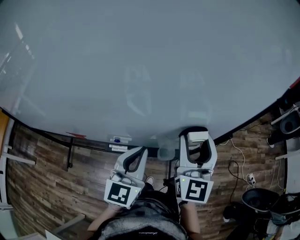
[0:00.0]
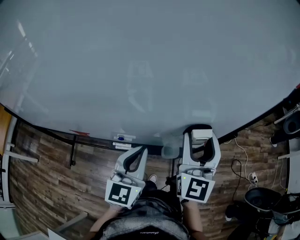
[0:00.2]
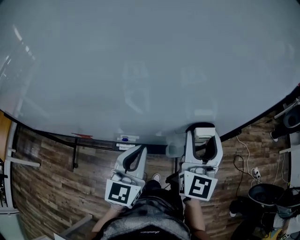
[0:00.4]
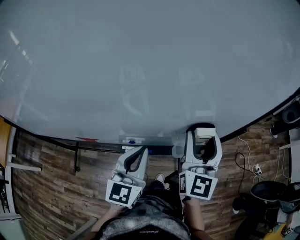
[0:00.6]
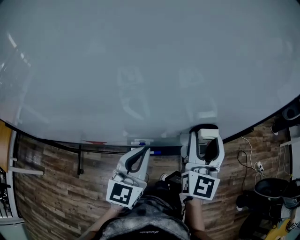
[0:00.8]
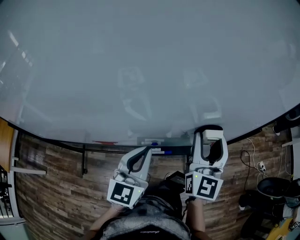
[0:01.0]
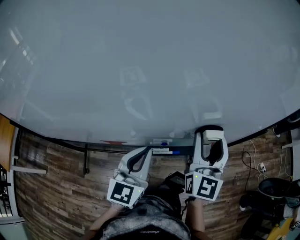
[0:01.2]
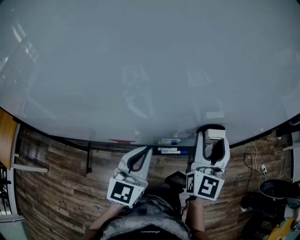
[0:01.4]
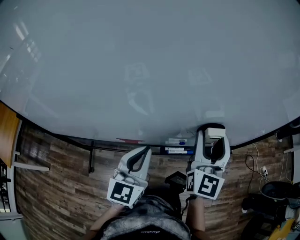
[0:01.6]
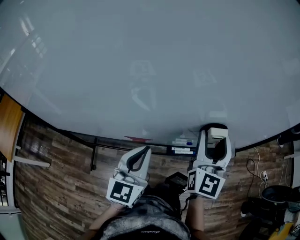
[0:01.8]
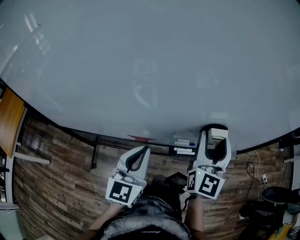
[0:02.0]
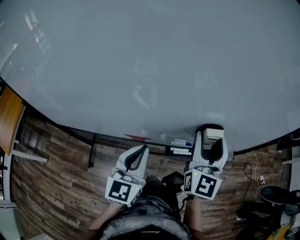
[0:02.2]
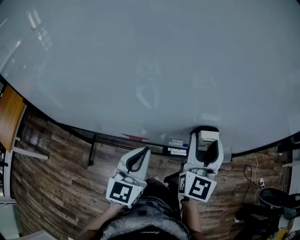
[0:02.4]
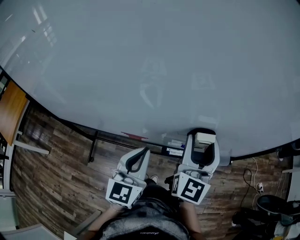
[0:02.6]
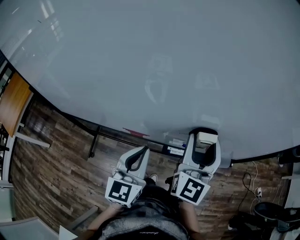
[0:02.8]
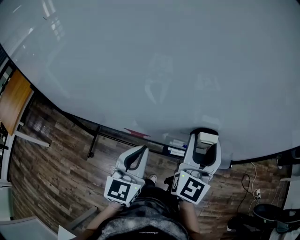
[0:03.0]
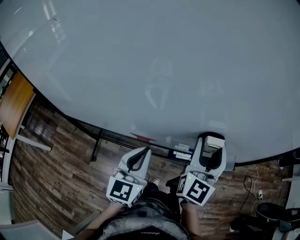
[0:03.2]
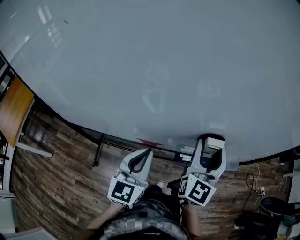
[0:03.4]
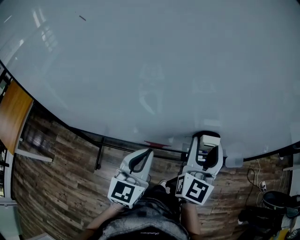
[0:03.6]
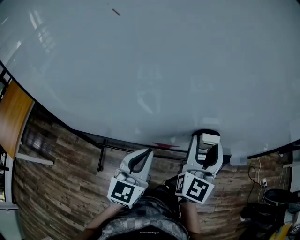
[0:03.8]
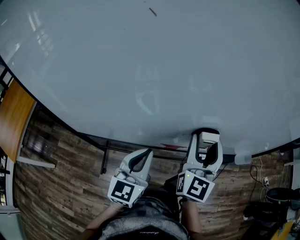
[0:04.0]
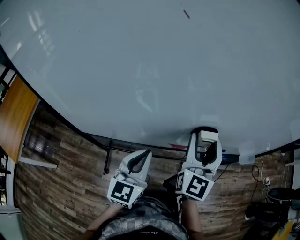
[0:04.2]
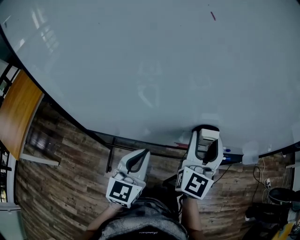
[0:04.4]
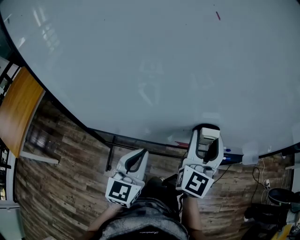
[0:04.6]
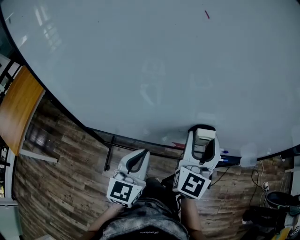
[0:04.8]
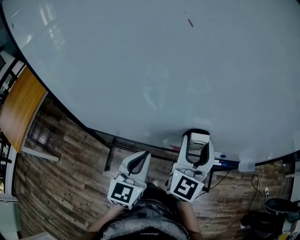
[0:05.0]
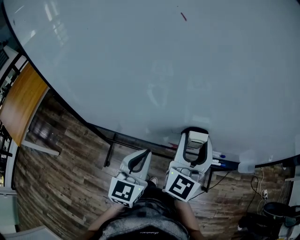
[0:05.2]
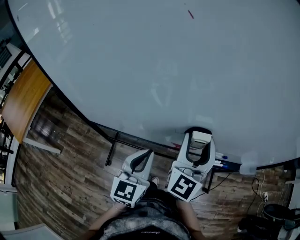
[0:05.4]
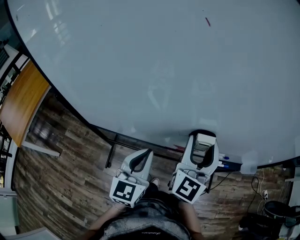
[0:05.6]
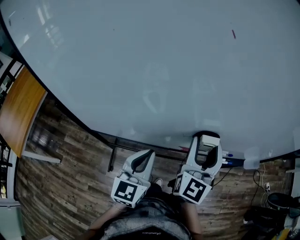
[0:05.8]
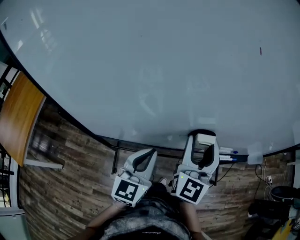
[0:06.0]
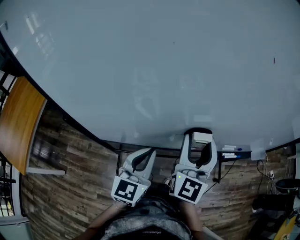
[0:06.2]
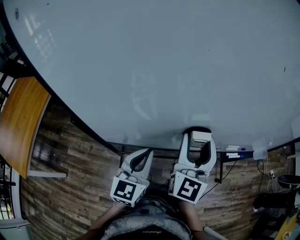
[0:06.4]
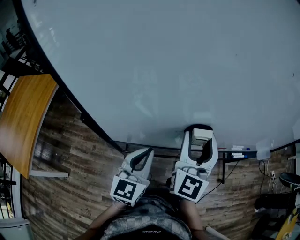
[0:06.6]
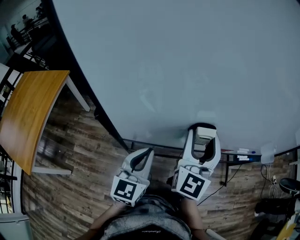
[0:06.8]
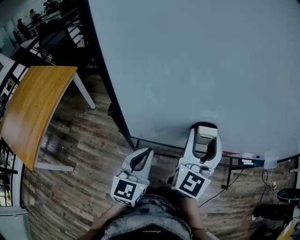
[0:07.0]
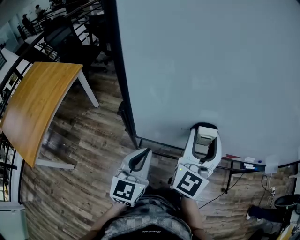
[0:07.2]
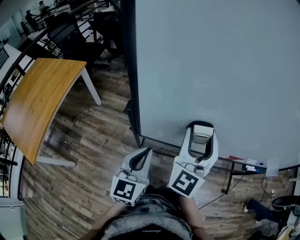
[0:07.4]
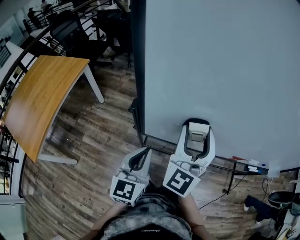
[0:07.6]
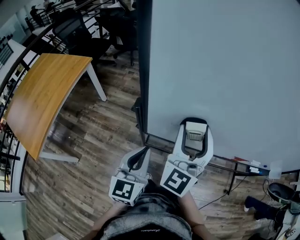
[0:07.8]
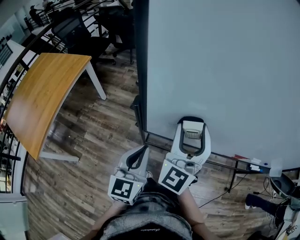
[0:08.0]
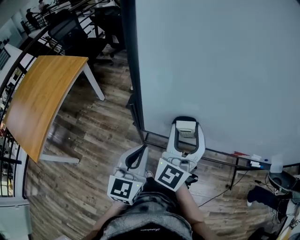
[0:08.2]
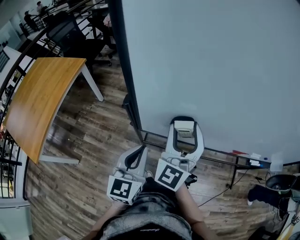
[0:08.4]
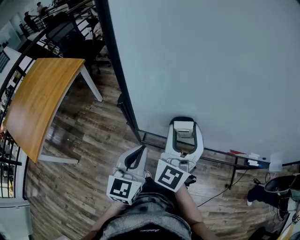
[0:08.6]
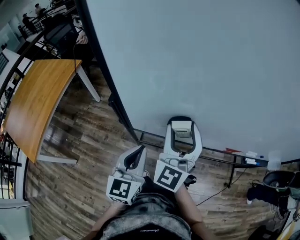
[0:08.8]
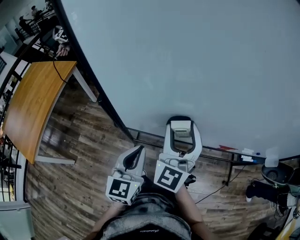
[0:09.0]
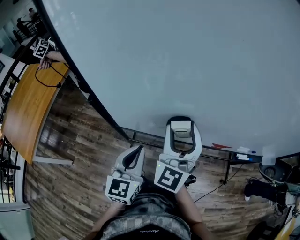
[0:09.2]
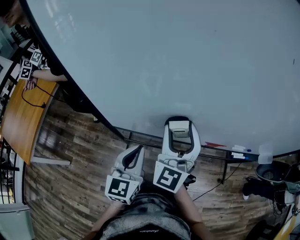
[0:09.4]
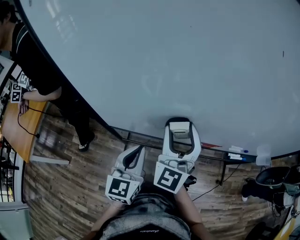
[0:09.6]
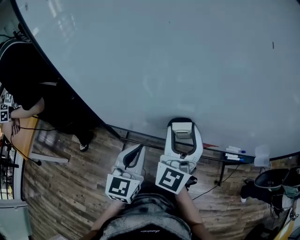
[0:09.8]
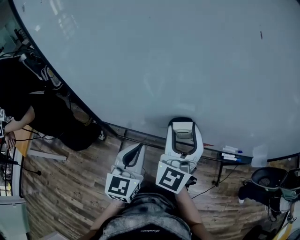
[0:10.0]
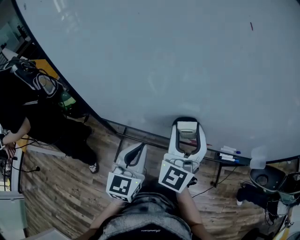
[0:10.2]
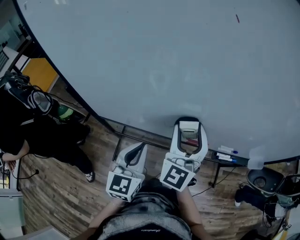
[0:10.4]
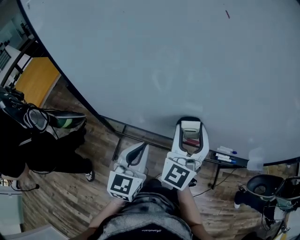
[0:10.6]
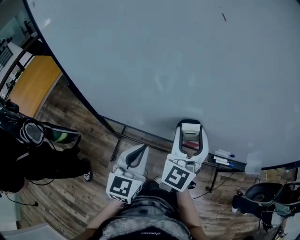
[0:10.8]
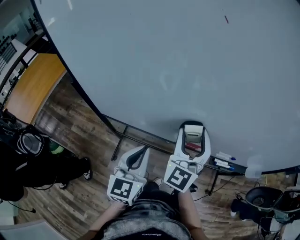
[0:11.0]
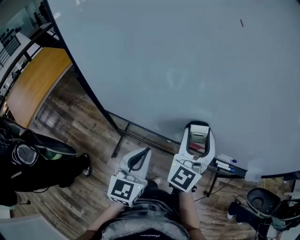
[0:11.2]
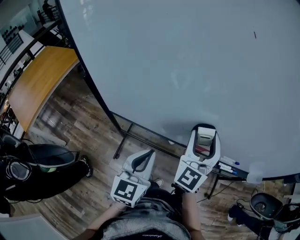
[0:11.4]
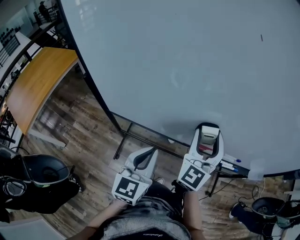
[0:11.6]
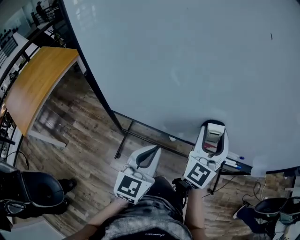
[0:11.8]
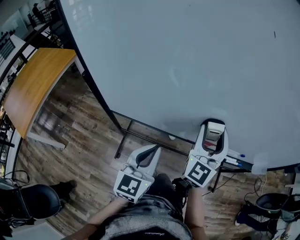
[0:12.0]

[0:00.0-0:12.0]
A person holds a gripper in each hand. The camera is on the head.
0:00.0 to 0:01.6: The grippers both shift to the left by roughly 25 cm.
0:01.6 to 0:03.0: There are only small adjustments of the grippers.
0:03.0 to 0:04.4: Both grippers travel together to the left, some 25 cm.
0:04.4 to 0:06.0: The left gripper is displaced to the left by approximately 5 cm. The right gripper heads to the left, covering roughly 10 cm.
0:06.0 to 0:07.6: Both grippers move to the left, approximately 30 cm.
0:07.6 to 0:09.0: Both grippers travel together to the right, roughly 10 cm.
0:09.0 to 0:10.4: Both grippers travel together to the right, approximately 25 cm.
0:10.4 to 0:12.0: The grippers make only small movements.

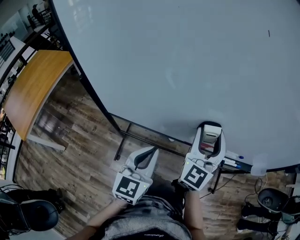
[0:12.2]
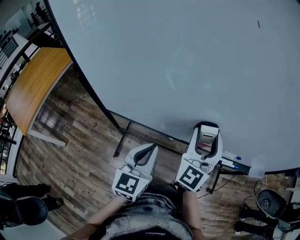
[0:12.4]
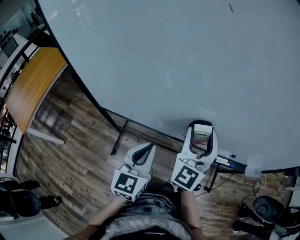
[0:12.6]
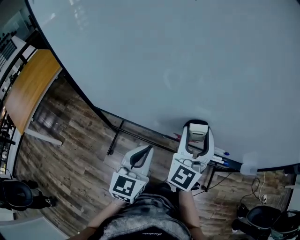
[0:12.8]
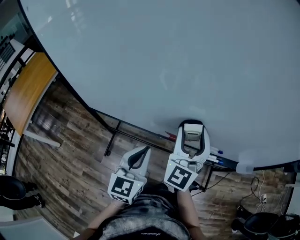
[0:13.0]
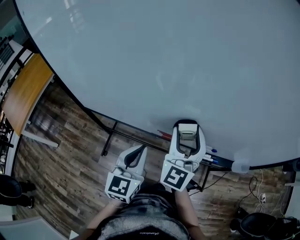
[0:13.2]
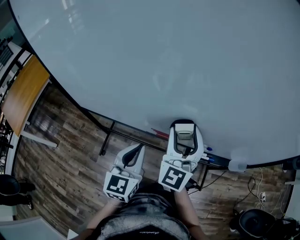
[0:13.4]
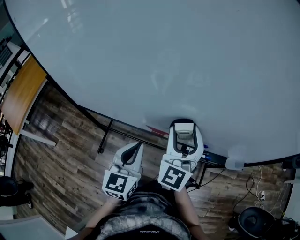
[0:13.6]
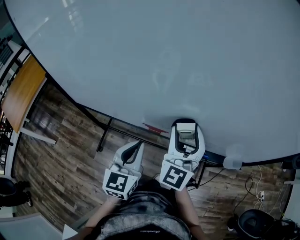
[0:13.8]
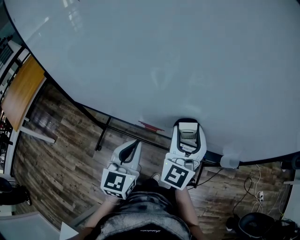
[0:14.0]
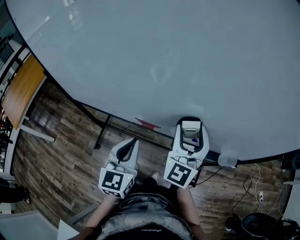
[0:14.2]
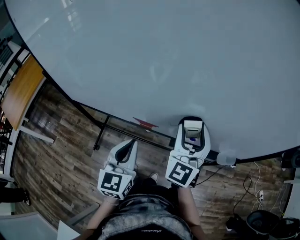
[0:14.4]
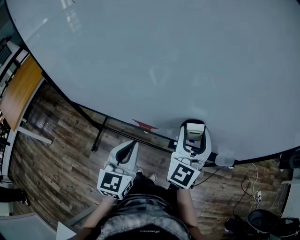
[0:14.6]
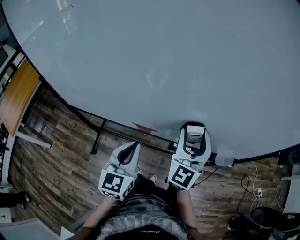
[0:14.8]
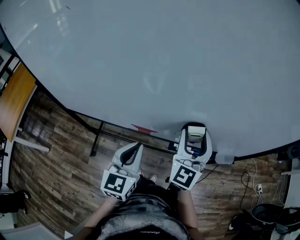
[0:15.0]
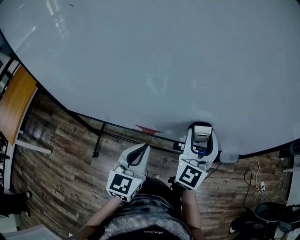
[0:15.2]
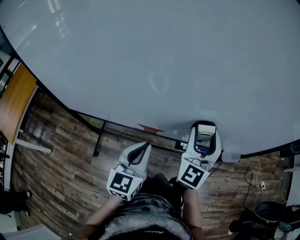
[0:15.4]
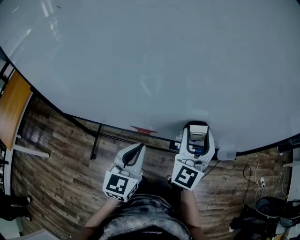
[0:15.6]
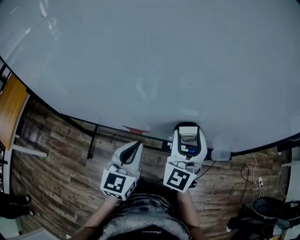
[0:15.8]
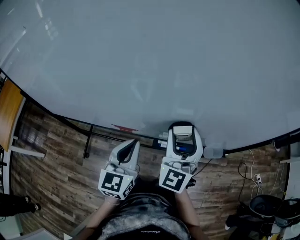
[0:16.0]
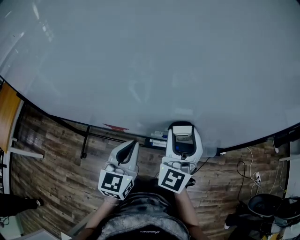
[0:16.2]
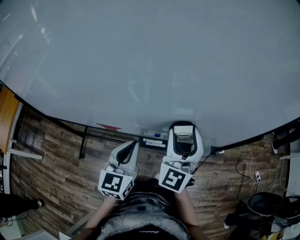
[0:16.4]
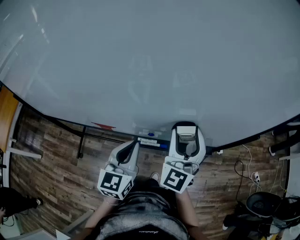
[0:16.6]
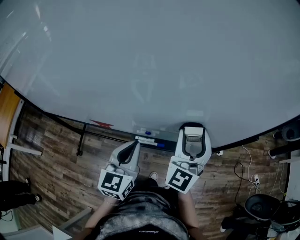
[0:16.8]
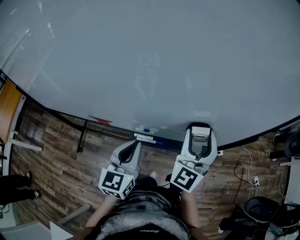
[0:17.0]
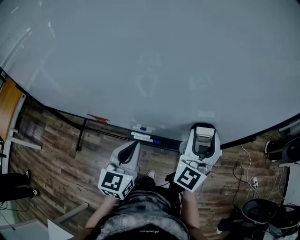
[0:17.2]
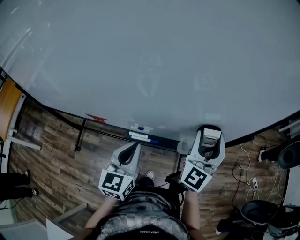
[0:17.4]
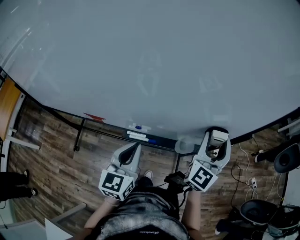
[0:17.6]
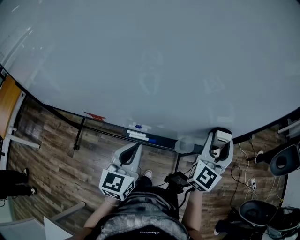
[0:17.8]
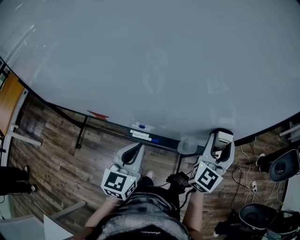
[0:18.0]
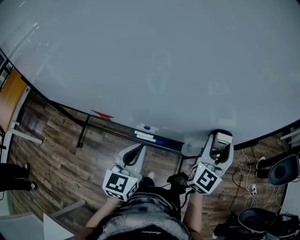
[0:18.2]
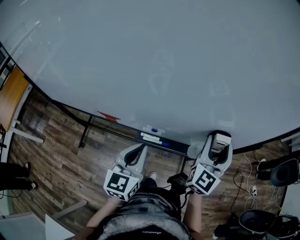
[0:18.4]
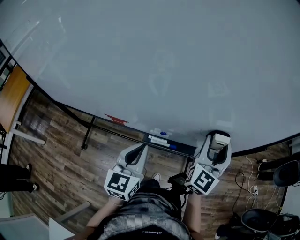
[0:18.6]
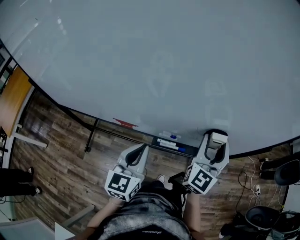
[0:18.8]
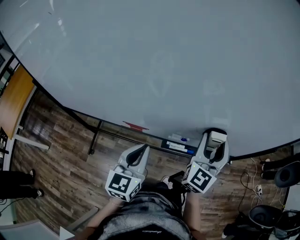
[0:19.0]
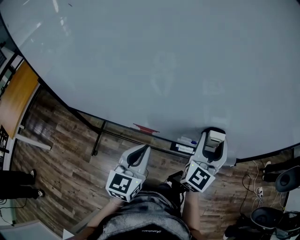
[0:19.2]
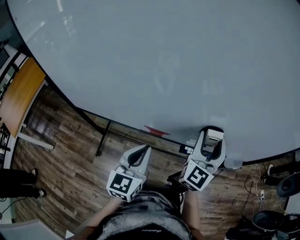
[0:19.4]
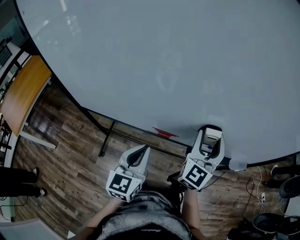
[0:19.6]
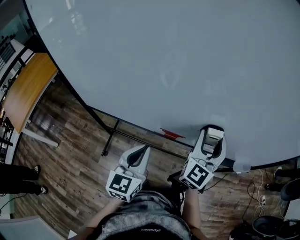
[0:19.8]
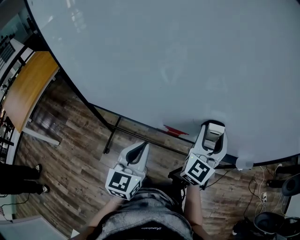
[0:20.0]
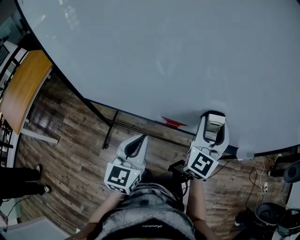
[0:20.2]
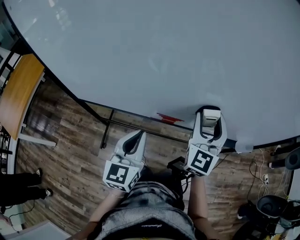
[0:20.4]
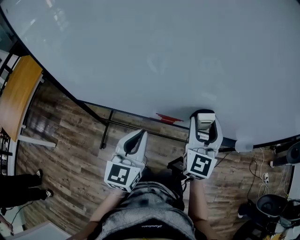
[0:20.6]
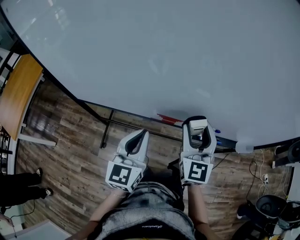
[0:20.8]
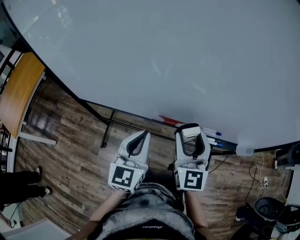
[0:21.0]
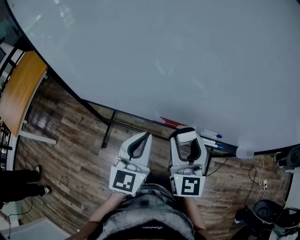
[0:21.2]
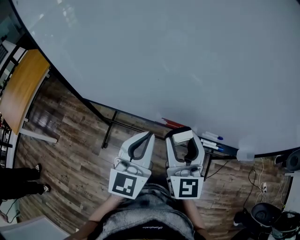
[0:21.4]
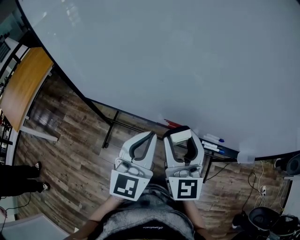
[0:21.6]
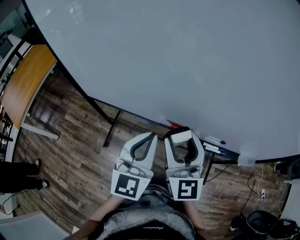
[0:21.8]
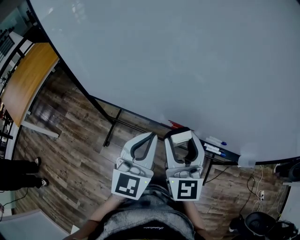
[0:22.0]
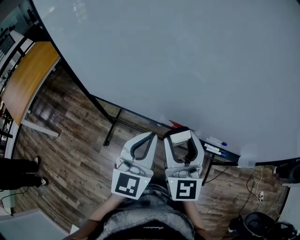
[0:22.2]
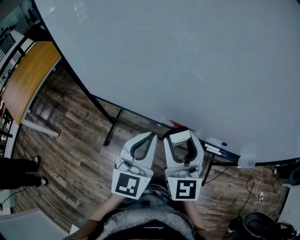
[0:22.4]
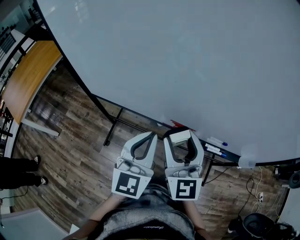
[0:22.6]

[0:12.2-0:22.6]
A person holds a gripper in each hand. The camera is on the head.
0:12.2 to 0:13.6: The two grippers go some 20 cm to the right.
0:13.6 to 0:15.2: The left gripper moves to the right, roughly 5 cm, while the right gripper travels to the right by approximately 10 cm.
0:15.2 to 0:16.6: The two grippers go approximately 15 cm to the right.
0:16.6 to 0:18.2: The right gripper shifts approximately 15 cm to the right; the left gripper travels to the right by some 5 cm.
0:18.2 to 0:19.6: Both grippers move to the left, roughly 35 cm.
0:19.6 to 0:21.2: The right gripper is displaced to the left and backward by approximately 15 cm, and changes its angle by some 30 degrees.
0:21.2 to 0:22.6: The right gripper is displaced to the left by about 5 cm.

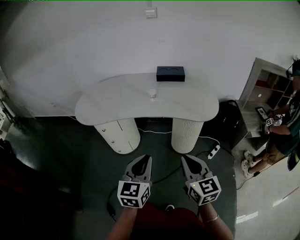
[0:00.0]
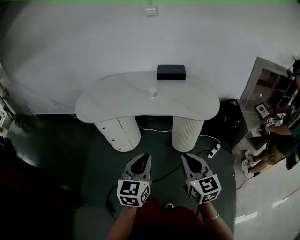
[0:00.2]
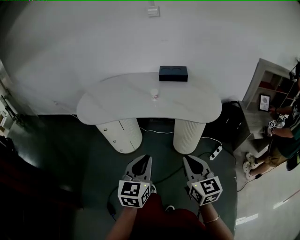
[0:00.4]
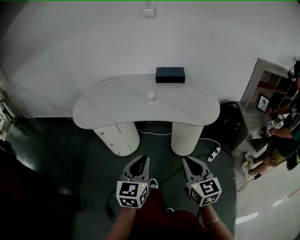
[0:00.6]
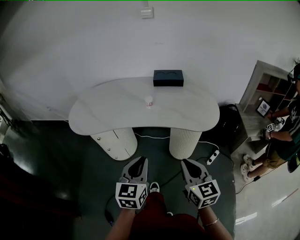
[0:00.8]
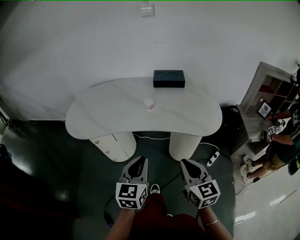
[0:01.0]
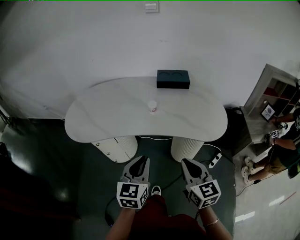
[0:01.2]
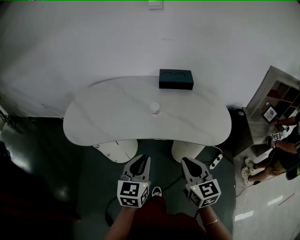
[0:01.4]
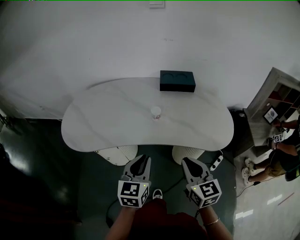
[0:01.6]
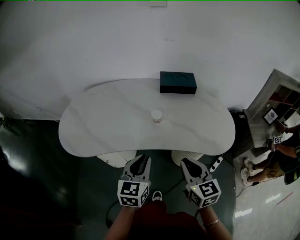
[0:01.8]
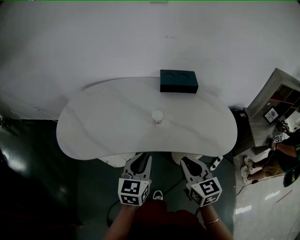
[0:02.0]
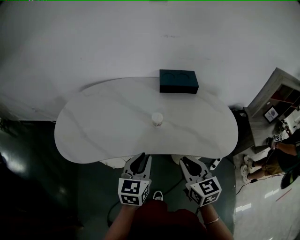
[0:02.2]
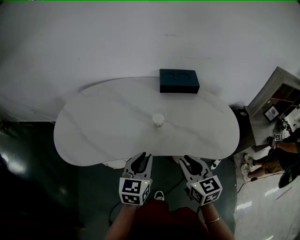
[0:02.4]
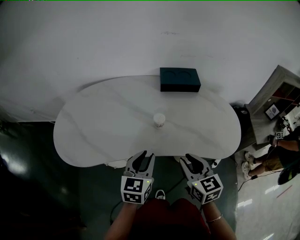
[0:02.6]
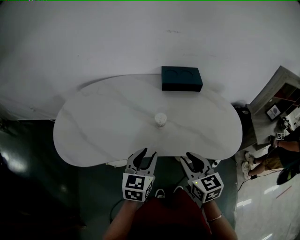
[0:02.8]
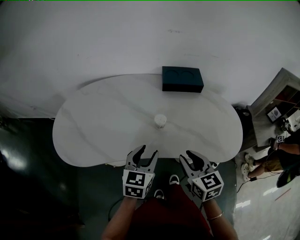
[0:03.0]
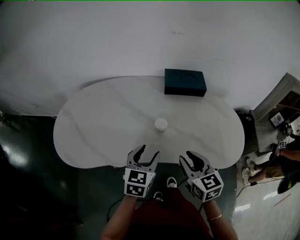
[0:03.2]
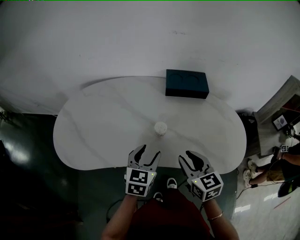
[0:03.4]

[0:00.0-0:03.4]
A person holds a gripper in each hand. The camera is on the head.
0:00.0 to 0:01.6: Both grippers travel together forward, about 25 cm.
0:01.6 to 0:03.4: The right gripper heads forward, covering roughly 15 cm, and opens; the left gripper travels forward and downward by some 20 cm, and opens.
